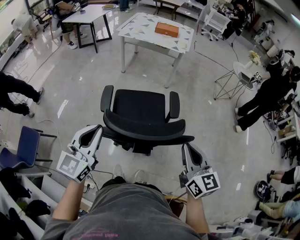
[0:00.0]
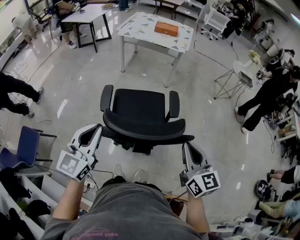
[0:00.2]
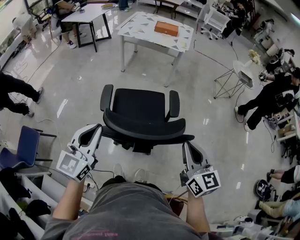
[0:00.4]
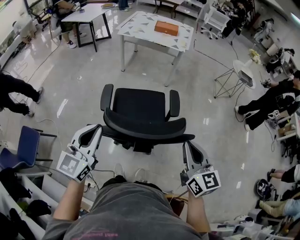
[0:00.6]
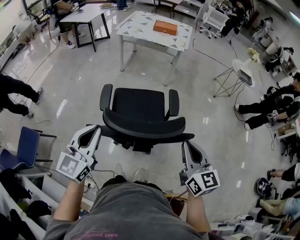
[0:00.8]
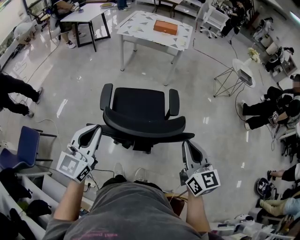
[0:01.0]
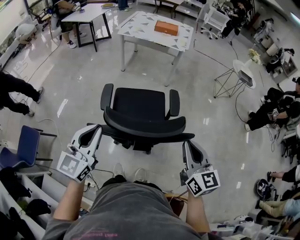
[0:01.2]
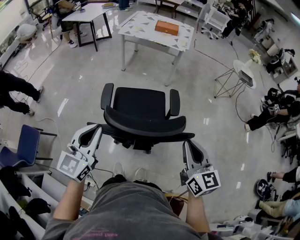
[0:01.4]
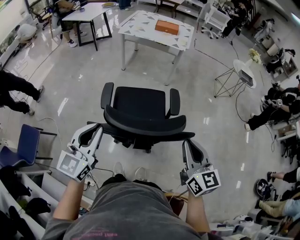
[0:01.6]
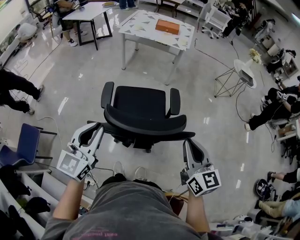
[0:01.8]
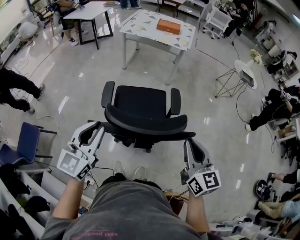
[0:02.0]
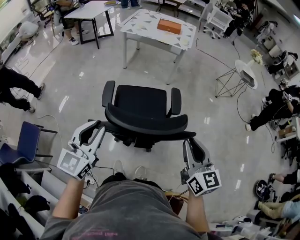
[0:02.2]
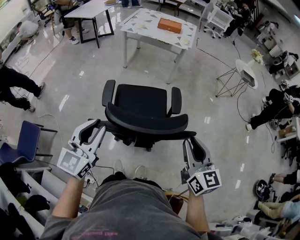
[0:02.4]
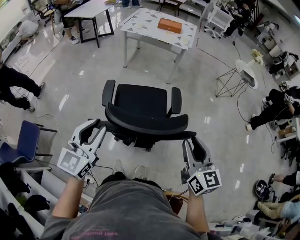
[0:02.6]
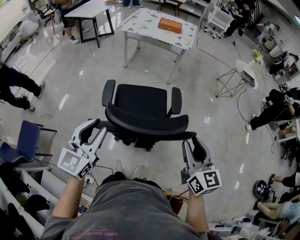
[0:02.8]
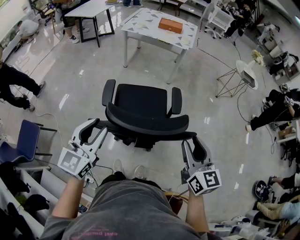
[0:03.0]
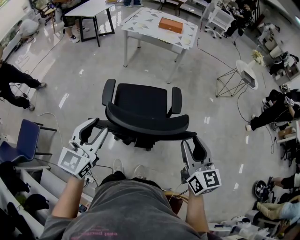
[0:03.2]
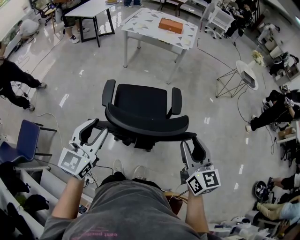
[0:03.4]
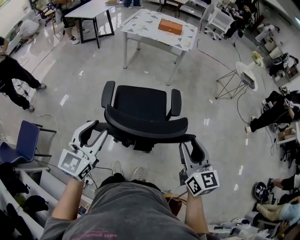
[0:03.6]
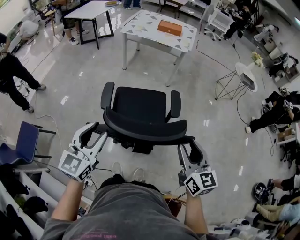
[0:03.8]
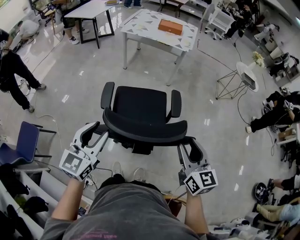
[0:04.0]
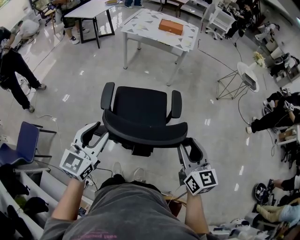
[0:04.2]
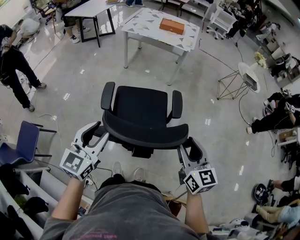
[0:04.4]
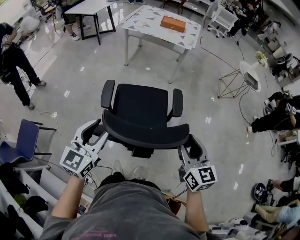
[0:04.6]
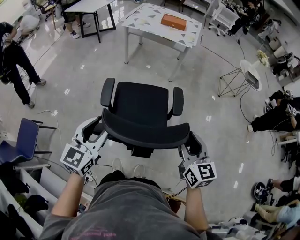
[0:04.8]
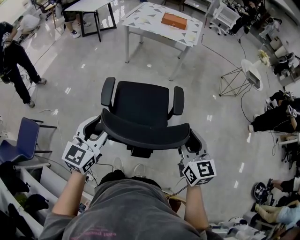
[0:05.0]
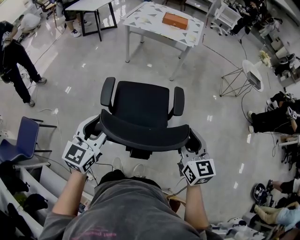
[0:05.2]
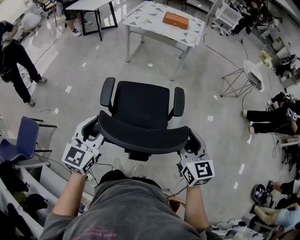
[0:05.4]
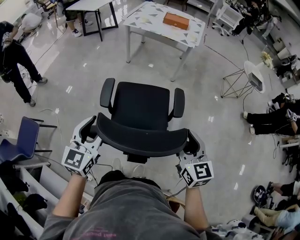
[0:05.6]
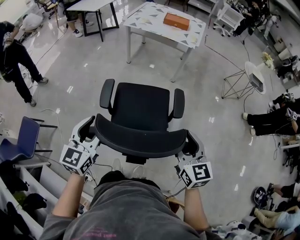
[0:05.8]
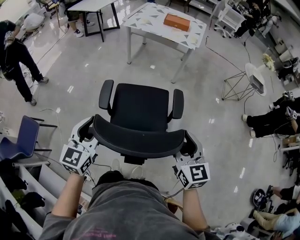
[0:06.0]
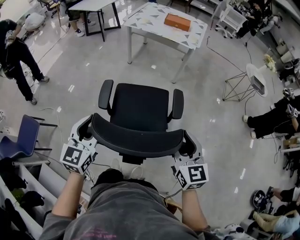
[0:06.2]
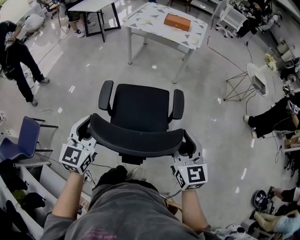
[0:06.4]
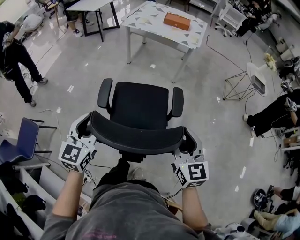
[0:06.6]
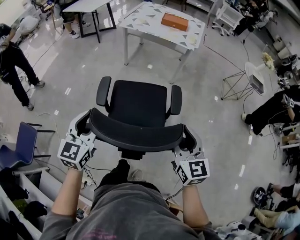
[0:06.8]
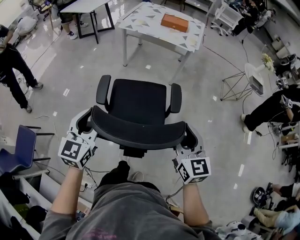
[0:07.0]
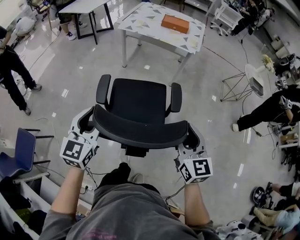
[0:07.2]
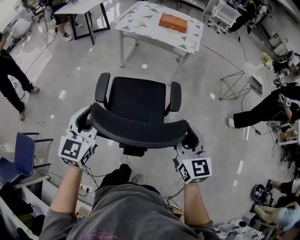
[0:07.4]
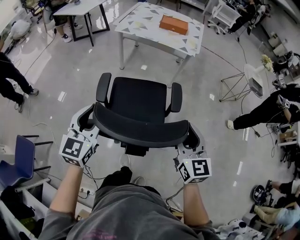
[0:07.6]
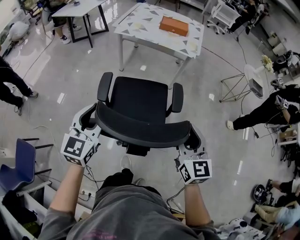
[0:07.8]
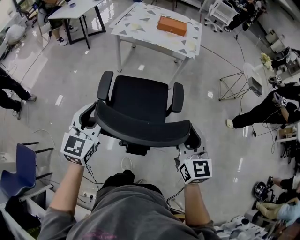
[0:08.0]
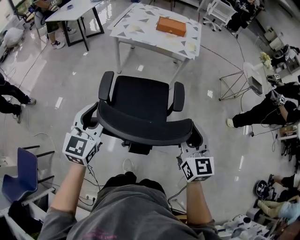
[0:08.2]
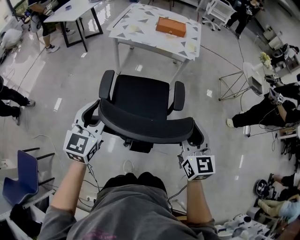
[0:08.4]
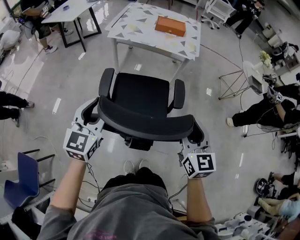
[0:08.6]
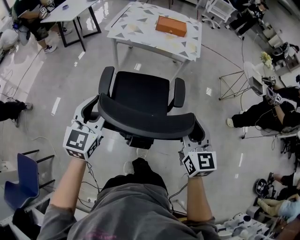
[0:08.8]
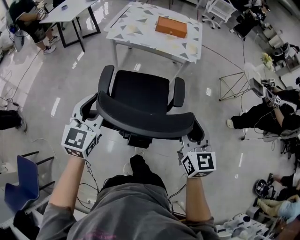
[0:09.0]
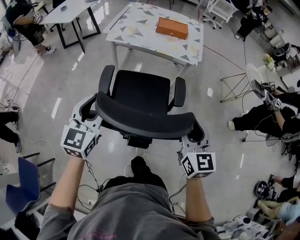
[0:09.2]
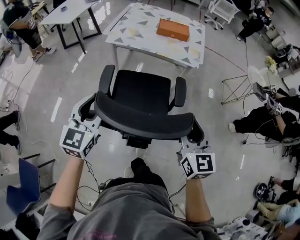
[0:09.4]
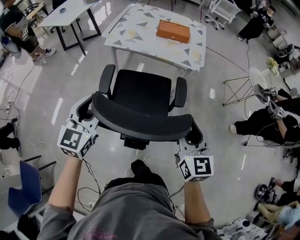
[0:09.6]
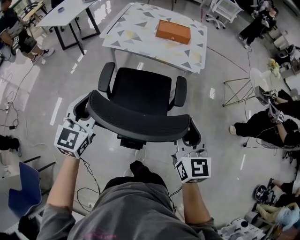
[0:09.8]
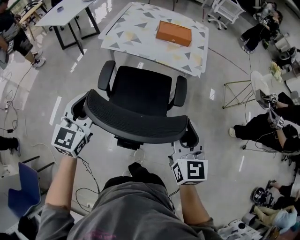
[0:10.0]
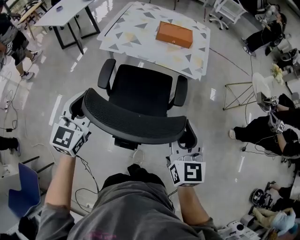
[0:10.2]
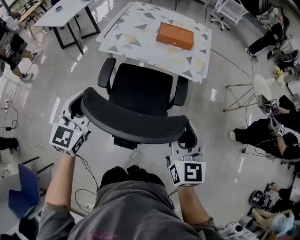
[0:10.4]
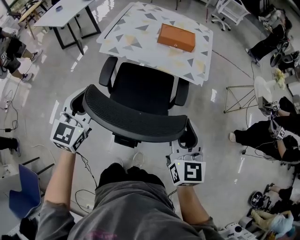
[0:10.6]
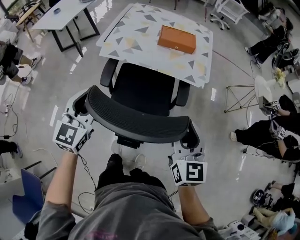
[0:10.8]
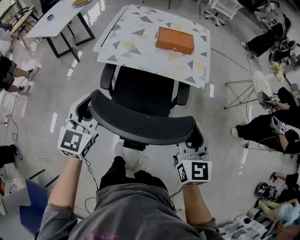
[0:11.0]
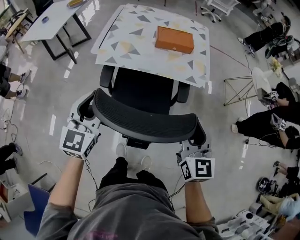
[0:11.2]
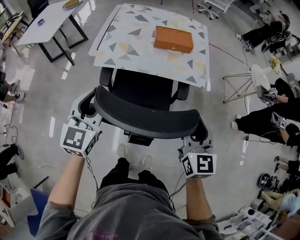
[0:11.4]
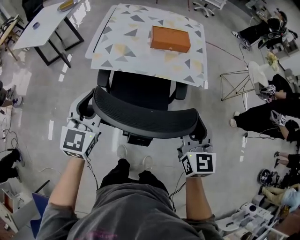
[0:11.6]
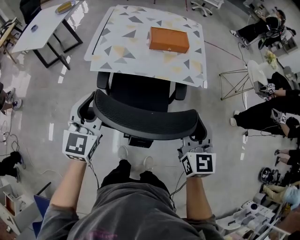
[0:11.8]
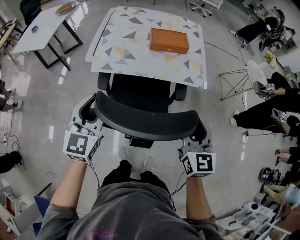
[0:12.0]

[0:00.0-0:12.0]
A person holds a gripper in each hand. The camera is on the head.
0:00.0 to 0:01.6: Neither gripper changes place.
0:01.6 to 0:03.0: The right gripper opens up. The left gripper opens its fingers.
0:03.0 to 0:04.4: The grippers make only small movements.
0:04.4 to 0:06.0: The right gripper is displaced forward by approximately 5 cm. Meanwhile the left gripper shifts by roughly 5 cm.
0:06.0 to 0:07.6: The two grippers go about 20 cm forward.
0:07.6 to 0:09.0: Both grippers move forward, some 15 cm.
0:09.0 to 0:10.4: The grippers both shift forward by some 20 cm.
0:10.4 to 0:12.0: Both grippers travel together forward, approximately 10 cm.

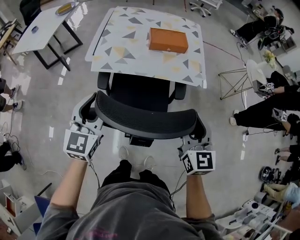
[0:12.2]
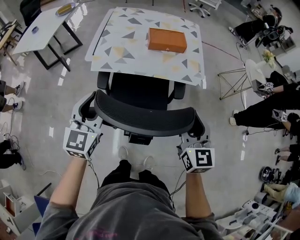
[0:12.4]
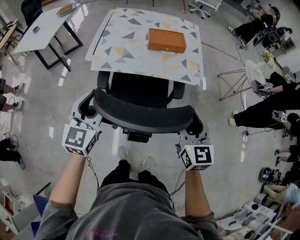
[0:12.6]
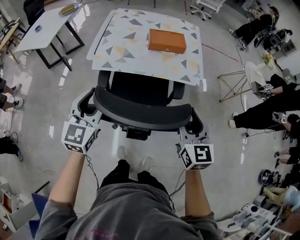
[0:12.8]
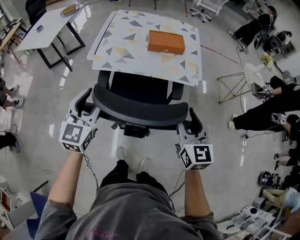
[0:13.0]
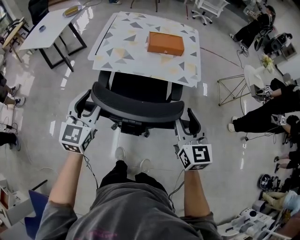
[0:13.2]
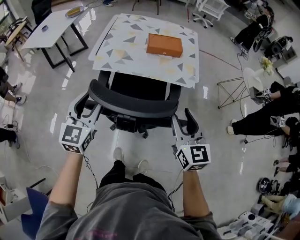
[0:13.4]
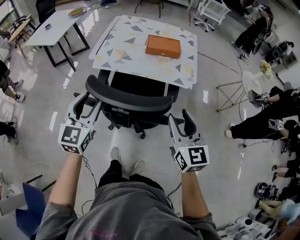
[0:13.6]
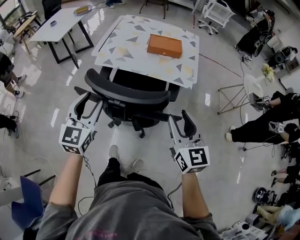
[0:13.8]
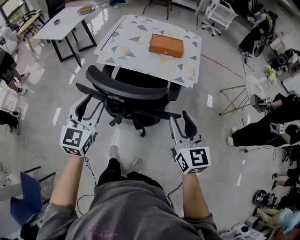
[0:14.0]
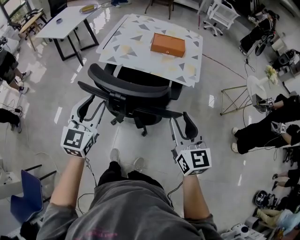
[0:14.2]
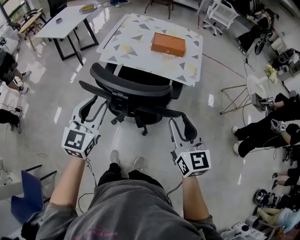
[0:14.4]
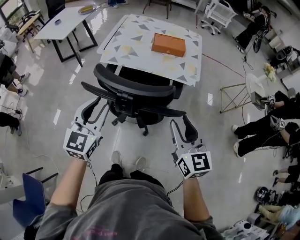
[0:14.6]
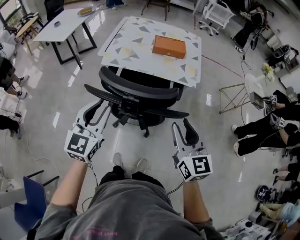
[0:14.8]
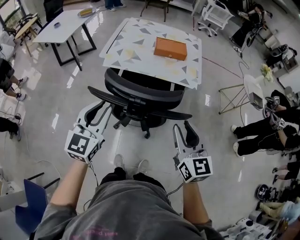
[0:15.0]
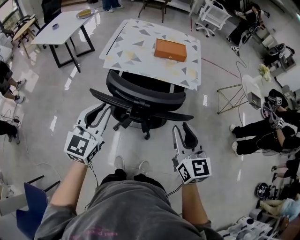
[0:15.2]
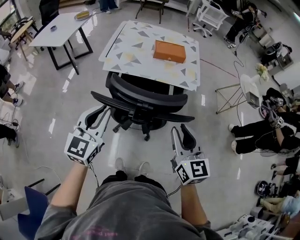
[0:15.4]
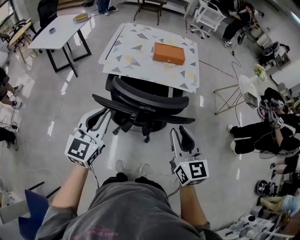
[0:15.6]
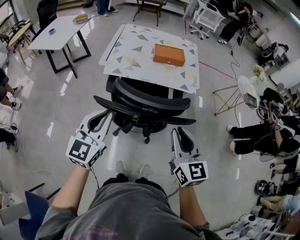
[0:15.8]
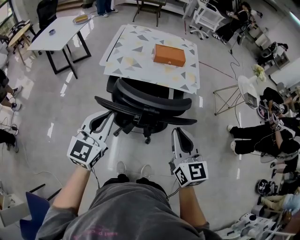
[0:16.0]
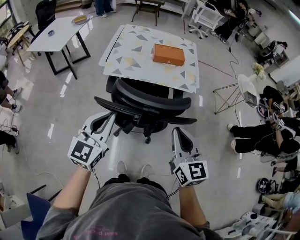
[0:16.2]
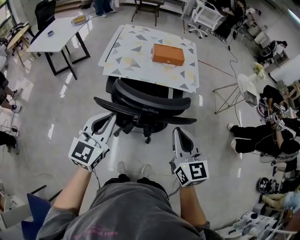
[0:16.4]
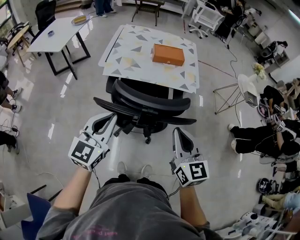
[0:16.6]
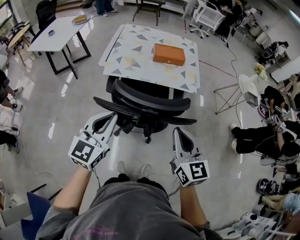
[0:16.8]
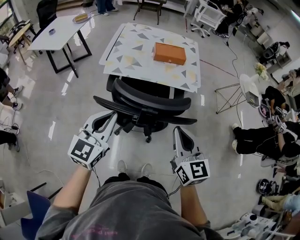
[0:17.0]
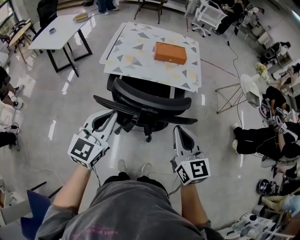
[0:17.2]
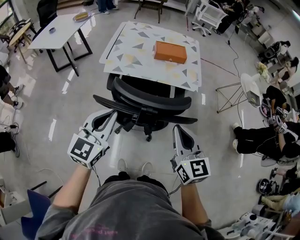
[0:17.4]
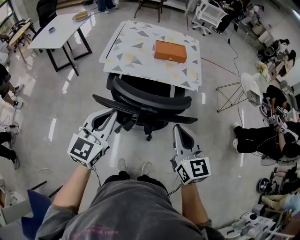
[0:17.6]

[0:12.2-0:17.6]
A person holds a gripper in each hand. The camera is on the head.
0:12.2 to 0:13.6: Both grippers travel together backward, approximately 5 cm.
0:13.6 to 0:15.0: Both grippers move backward, some 10 cm. The left gripper closes up.
0:15.0 to 0:16.2: The right gripper travels to the left by roughly 5 cm, and closes up. The left gripper closes.
0:16.2 to 0:17.6: There are only small adjustments of the grippers.

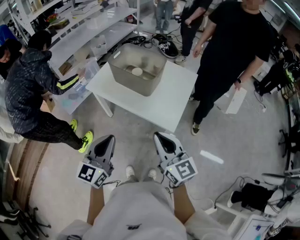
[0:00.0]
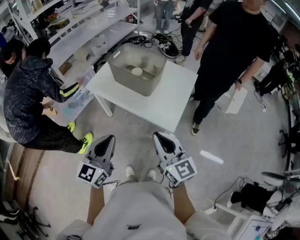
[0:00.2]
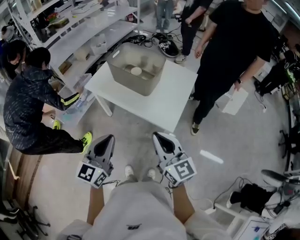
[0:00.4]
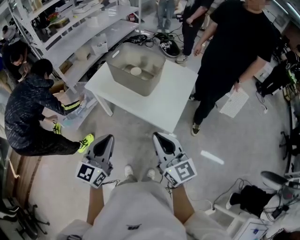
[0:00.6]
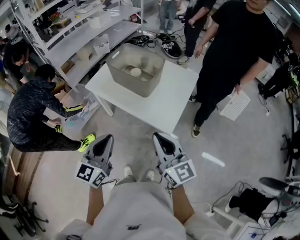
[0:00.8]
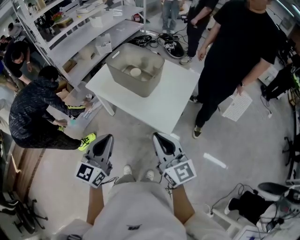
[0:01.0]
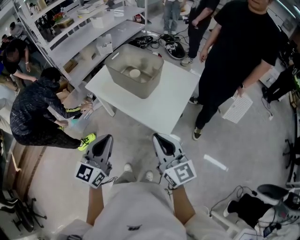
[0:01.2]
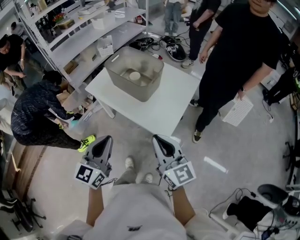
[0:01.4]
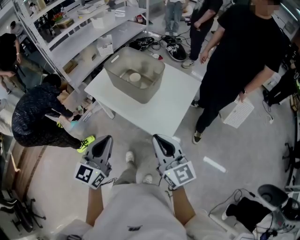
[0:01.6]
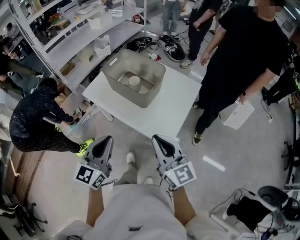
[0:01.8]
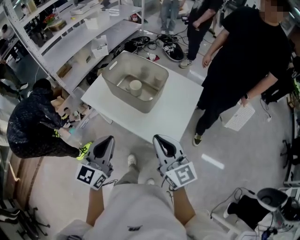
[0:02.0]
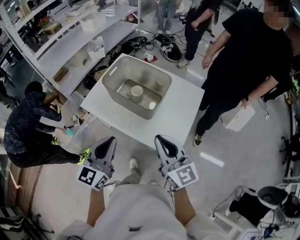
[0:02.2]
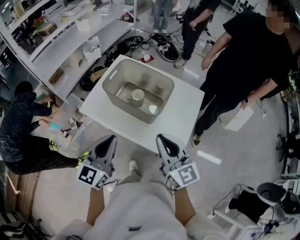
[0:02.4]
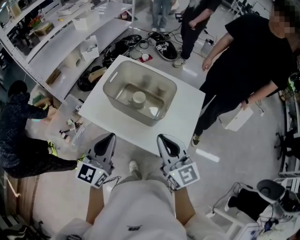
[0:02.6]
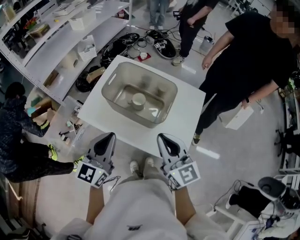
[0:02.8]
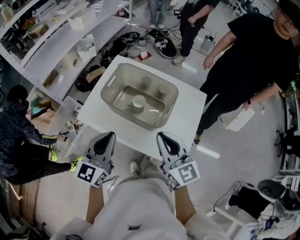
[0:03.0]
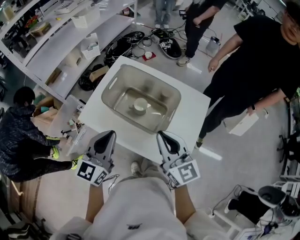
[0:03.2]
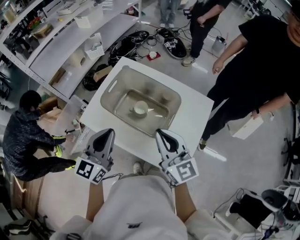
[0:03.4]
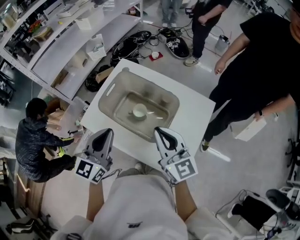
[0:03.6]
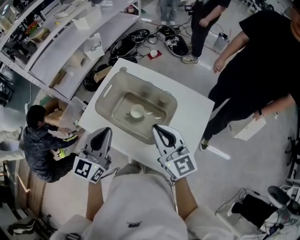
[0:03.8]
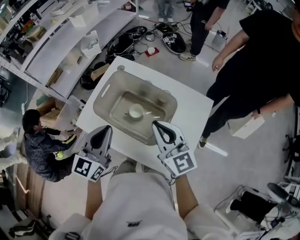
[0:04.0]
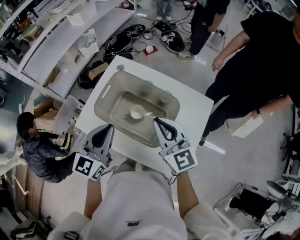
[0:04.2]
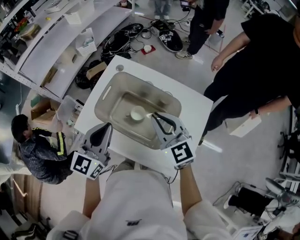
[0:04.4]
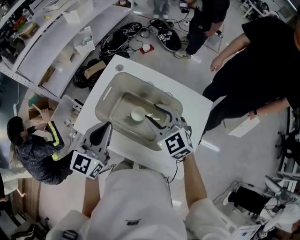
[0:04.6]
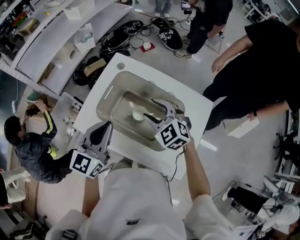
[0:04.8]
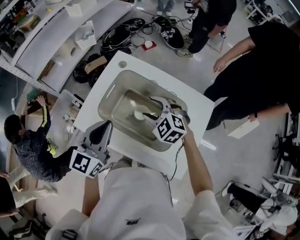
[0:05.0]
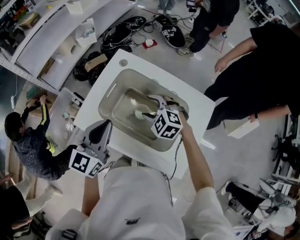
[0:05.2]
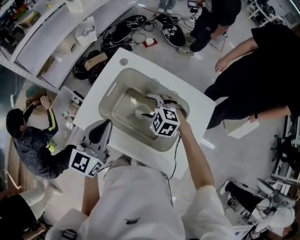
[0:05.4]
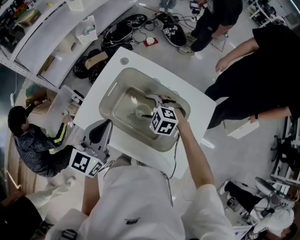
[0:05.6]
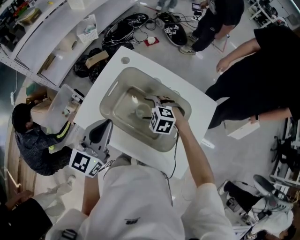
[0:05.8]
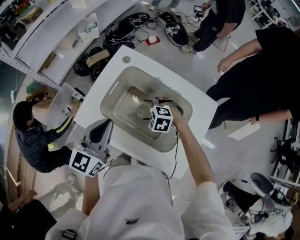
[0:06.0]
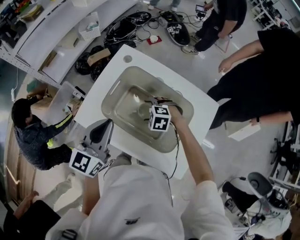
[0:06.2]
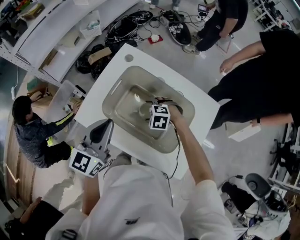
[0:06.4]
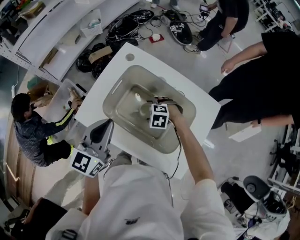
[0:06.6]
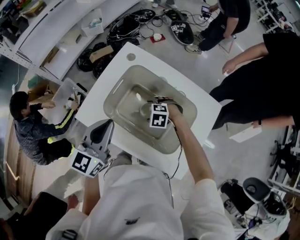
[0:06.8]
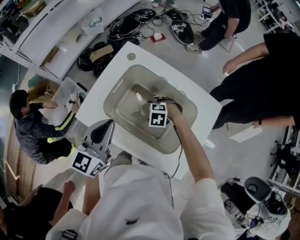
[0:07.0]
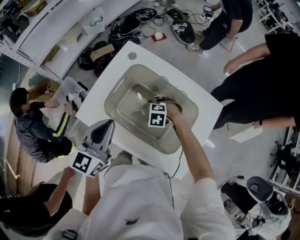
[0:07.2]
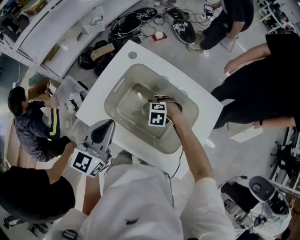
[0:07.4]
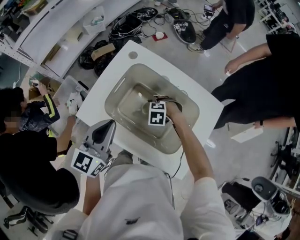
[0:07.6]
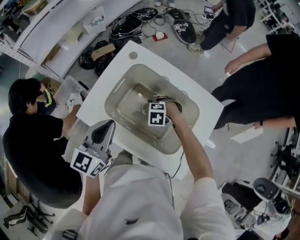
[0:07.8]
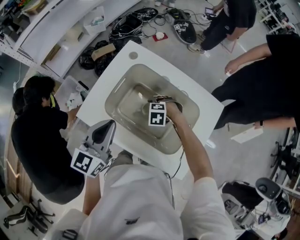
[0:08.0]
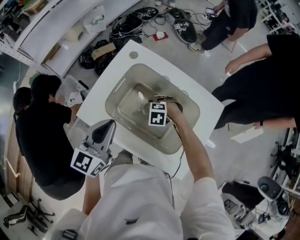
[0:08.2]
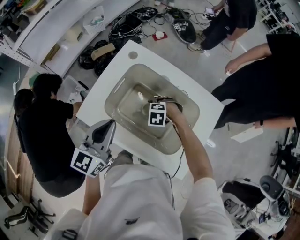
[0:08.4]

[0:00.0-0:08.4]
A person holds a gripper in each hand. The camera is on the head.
0:00.0 to 0:01.4: The grippers both shift to the right by approximately 10 cm.
0:01.4 to 0:02.8: Both grippers move forward and to the left, some 35 cm.
0:02.8 to 0:04.2: Both grippers travel together forward, roughly 20 cm.
0:04.2 to 0:05.6: The left gripper goes approximately 10 cm to the left and forward. Meanwhile the right gripper moves downward, forward and to the left, about 25 cm, tips its fingers downward by approximately 50 degrees, and opens its fingers.
0:05.6 to 0:07.0: The right gripper goes roughly 10 cm downward, and changes its angle by approximately 30 degrees.
0:07.0 to 0:08.4: The two grippers keep their place.
